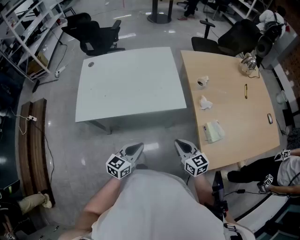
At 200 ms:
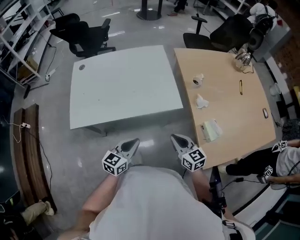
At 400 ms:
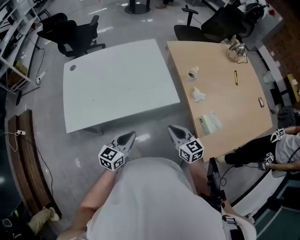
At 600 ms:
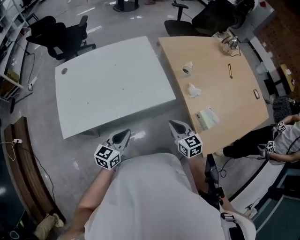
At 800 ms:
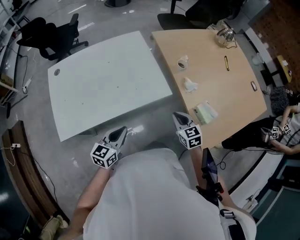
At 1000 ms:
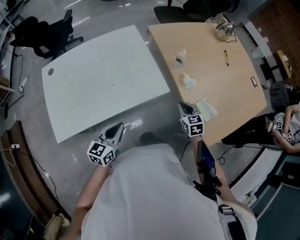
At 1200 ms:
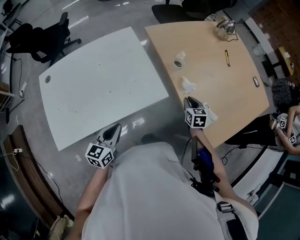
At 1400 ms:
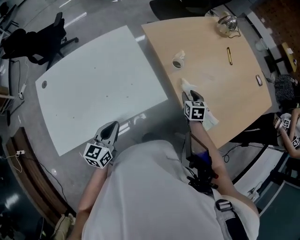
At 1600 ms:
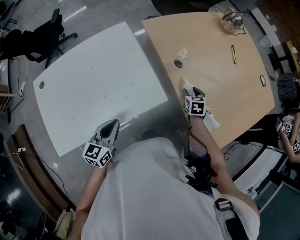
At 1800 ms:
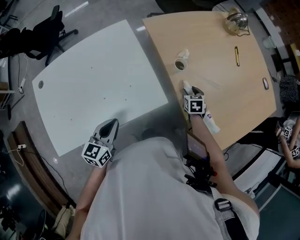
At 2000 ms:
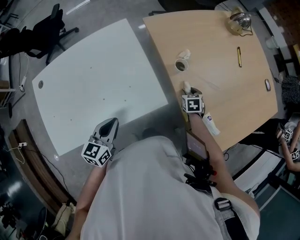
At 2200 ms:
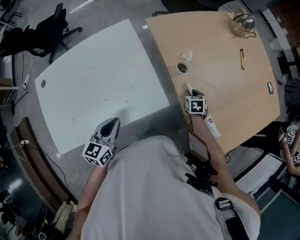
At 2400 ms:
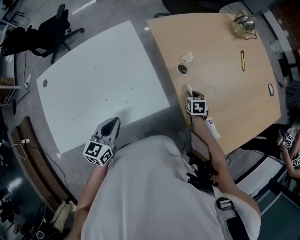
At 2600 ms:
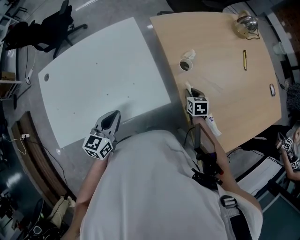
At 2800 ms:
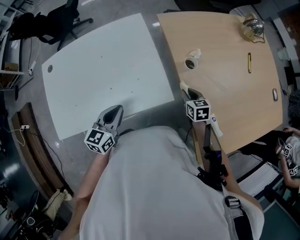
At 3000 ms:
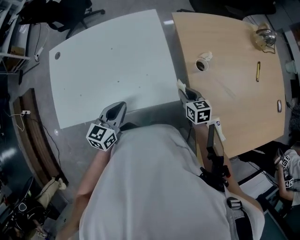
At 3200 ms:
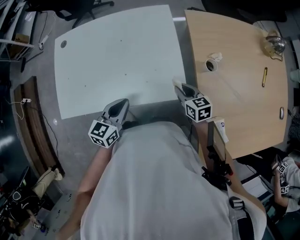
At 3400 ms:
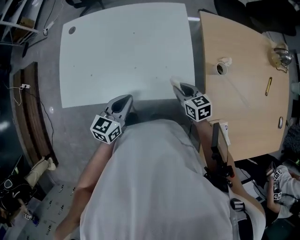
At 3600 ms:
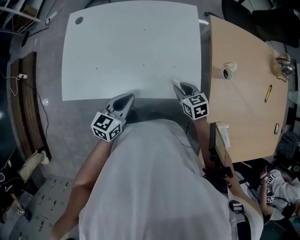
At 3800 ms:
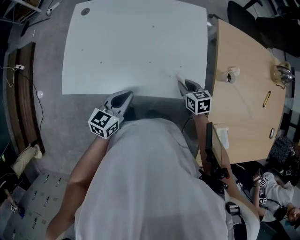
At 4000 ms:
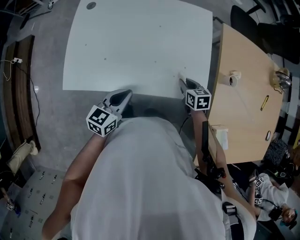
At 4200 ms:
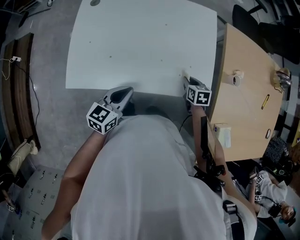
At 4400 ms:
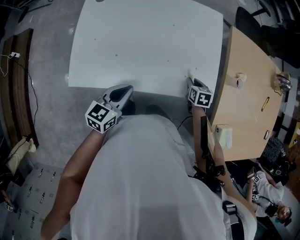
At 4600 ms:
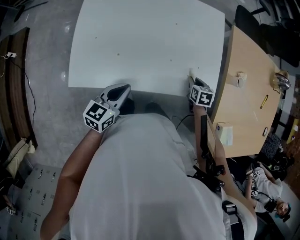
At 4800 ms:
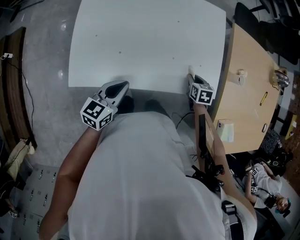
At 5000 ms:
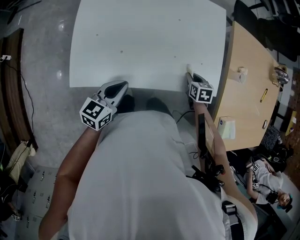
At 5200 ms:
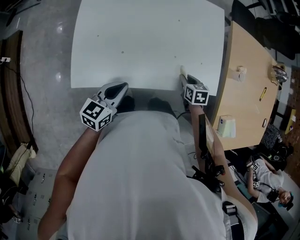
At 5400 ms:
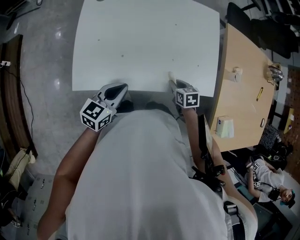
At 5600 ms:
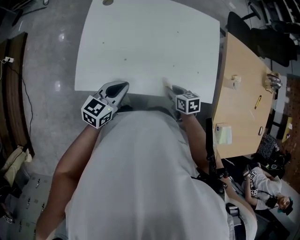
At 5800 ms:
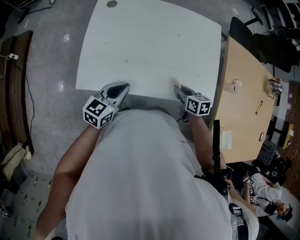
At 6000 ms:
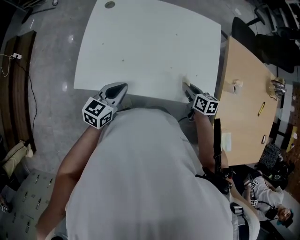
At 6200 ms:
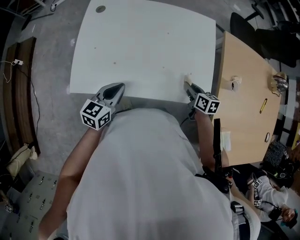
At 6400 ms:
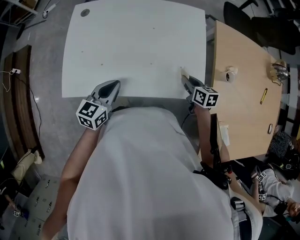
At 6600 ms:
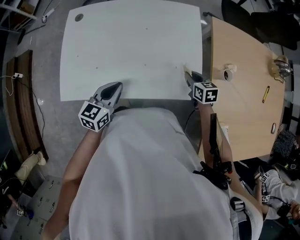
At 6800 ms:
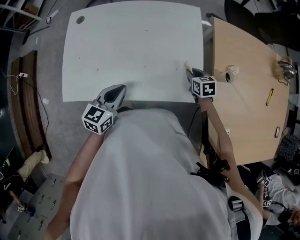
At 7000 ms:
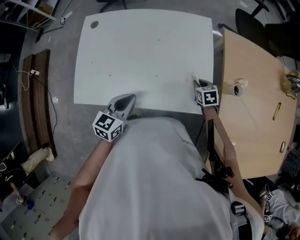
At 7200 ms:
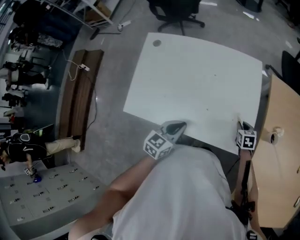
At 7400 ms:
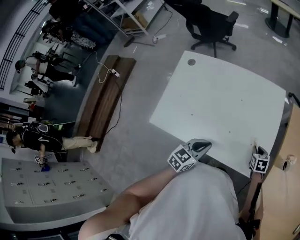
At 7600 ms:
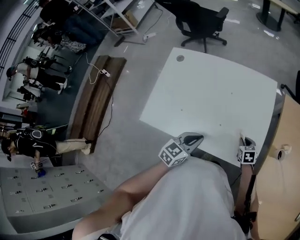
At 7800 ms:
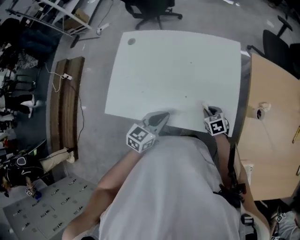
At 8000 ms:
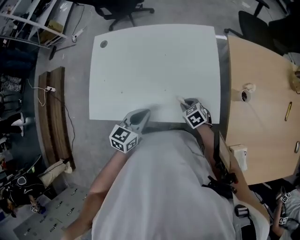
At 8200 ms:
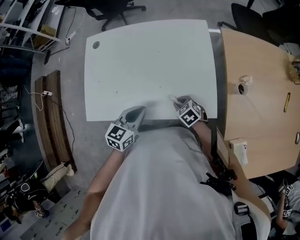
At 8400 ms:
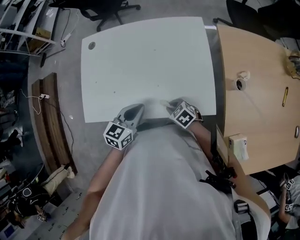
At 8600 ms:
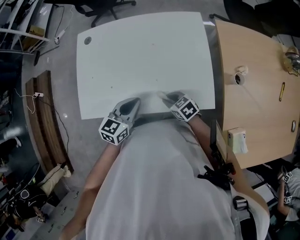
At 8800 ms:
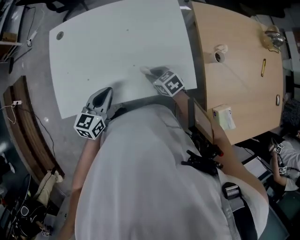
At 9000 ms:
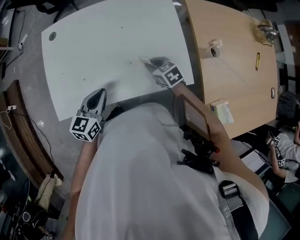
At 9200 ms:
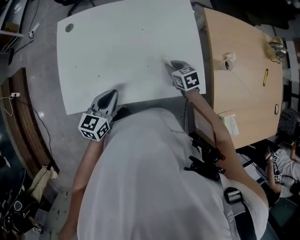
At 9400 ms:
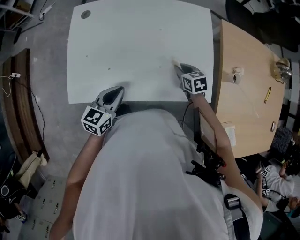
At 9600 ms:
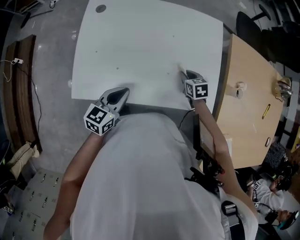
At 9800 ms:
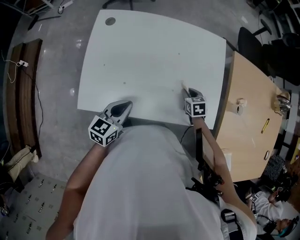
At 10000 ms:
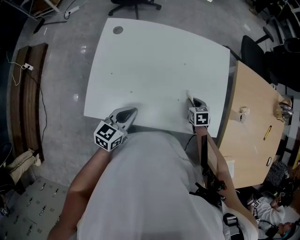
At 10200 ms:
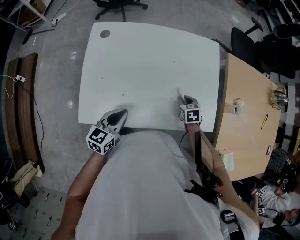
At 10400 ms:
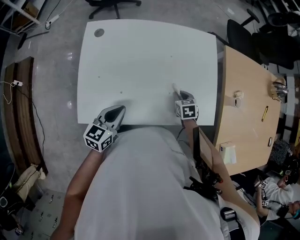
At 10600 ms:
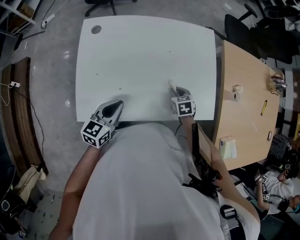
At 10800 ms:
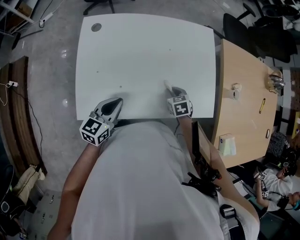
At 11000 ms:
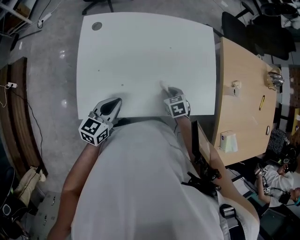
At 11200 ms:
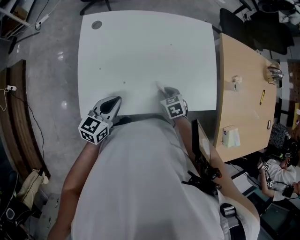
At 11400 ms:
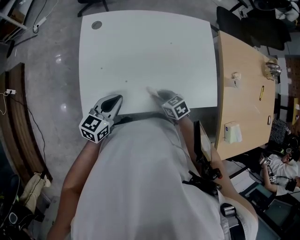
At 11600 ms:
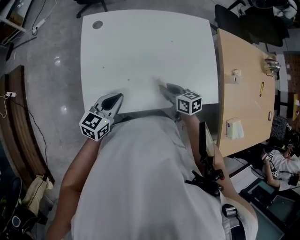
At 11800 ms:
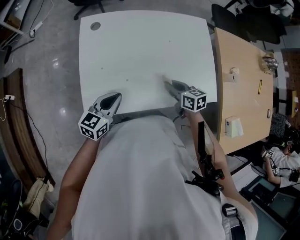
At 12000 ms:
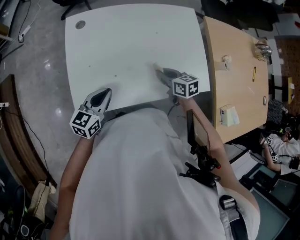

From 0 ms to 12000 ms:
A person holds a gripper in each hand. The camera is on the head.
From 0 ms to 1600 ms: The right gripper ends up about 35 cm from where it was, changes its angle by roughly 50 degrees, and opens up, while the left gripper shifts by approximately 25 cm.
From 1600 ms to 3000 ms: The right gripper goes downward and returns, about 5 cm each way, swivels about 30 degrees, and closes.
From 3000 ms to 4400 ms: The left gripper heads to the left, covering about 20 cm, while the right gripper moves to the left and downward, roughly 15 cm.
From 4400 ms to 6000 ms: The left gripper travels to the left by roughly 5 cm. Meanwhile the right gripper heads to the left and upward, covering some 10 cm, and swivels some 20 degrees.
From 6000 ms to 7600 ms: The right gripper shifts approximately 10 cm downward, to the right and forward, and turns by roughly 30 degrees, while the left gripper shifts approximately 15 cm to the right.
From 7600 ms to 9000 ms: The right gripper is displaced to the left and upward by roughly 10 cm; the left gripper travels to the left by about 5 cm.
From 9000 ms to 10400 ms: The right gripper ends up roughly 5 cm from where it was, and rotates some 20 degrees; the left gripper goes some 10 cm to the left.
From 10400 ms to 12000 ms: The left gripper is displaced to the left by some 5 cm, while the right gripper shifts approximately 10 cm to the left and upward, and changes its angle by roughly 30 degrees.

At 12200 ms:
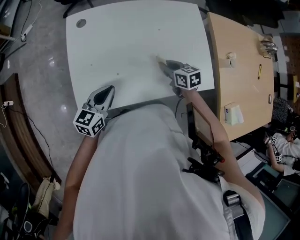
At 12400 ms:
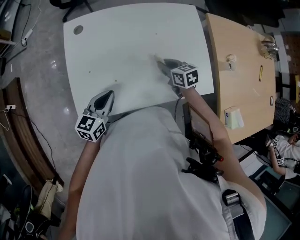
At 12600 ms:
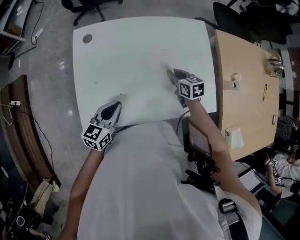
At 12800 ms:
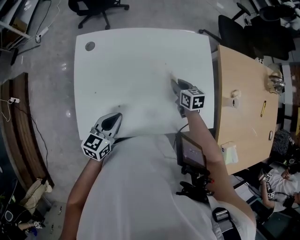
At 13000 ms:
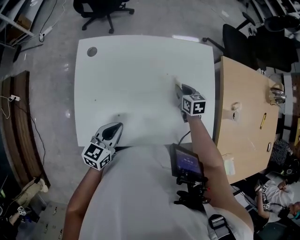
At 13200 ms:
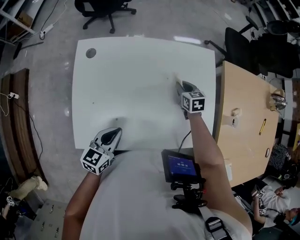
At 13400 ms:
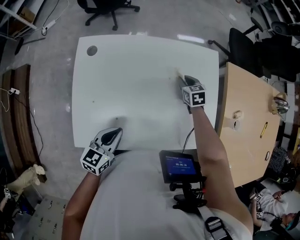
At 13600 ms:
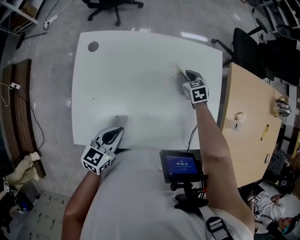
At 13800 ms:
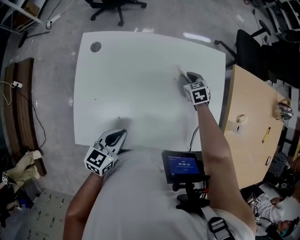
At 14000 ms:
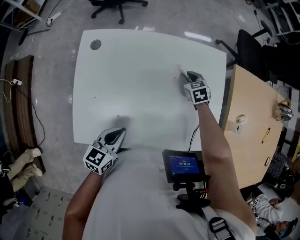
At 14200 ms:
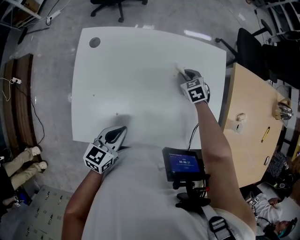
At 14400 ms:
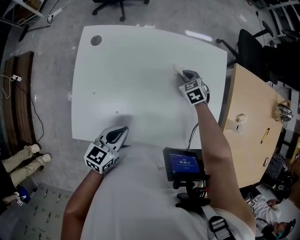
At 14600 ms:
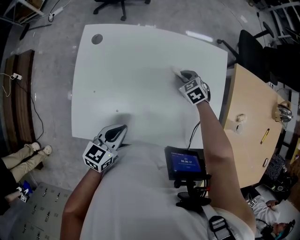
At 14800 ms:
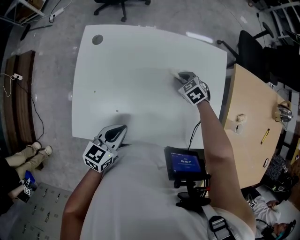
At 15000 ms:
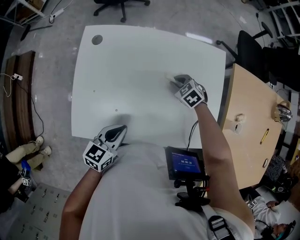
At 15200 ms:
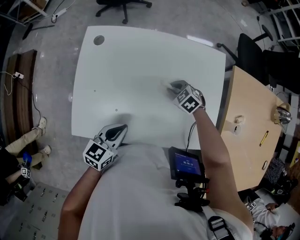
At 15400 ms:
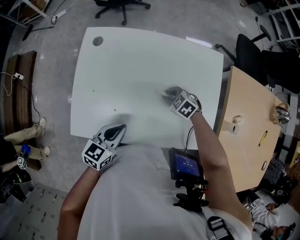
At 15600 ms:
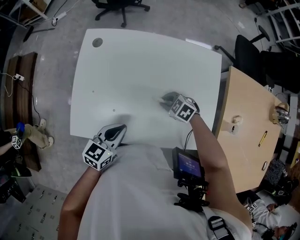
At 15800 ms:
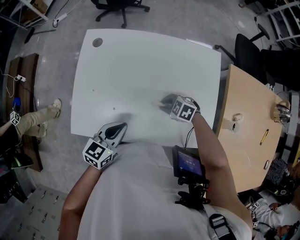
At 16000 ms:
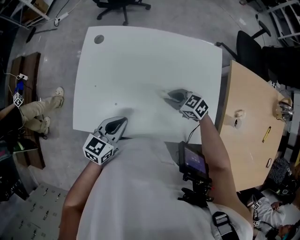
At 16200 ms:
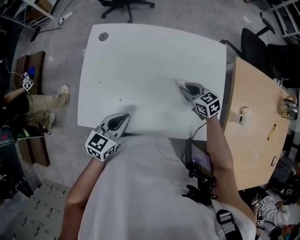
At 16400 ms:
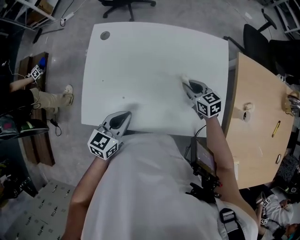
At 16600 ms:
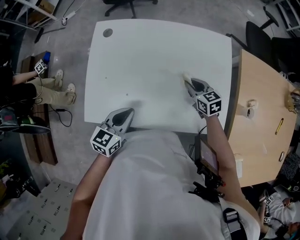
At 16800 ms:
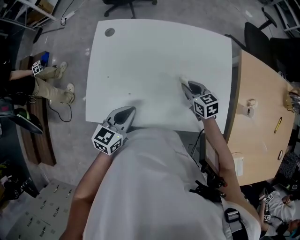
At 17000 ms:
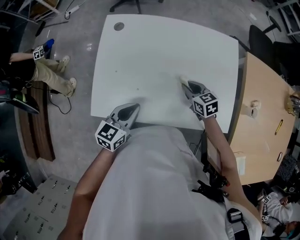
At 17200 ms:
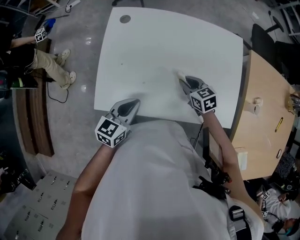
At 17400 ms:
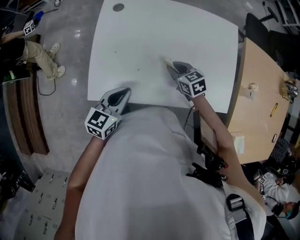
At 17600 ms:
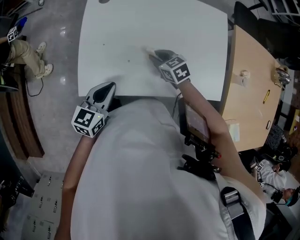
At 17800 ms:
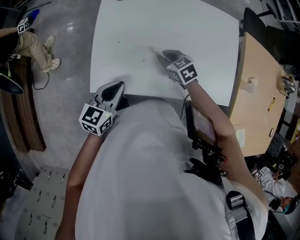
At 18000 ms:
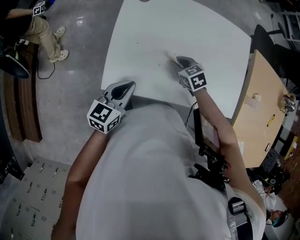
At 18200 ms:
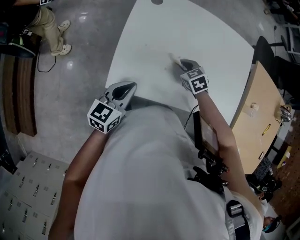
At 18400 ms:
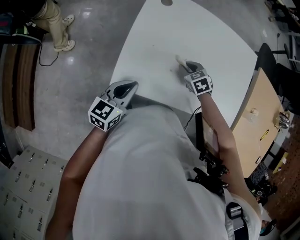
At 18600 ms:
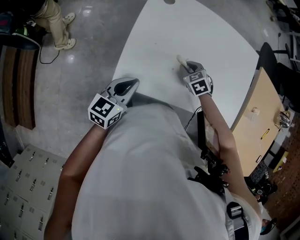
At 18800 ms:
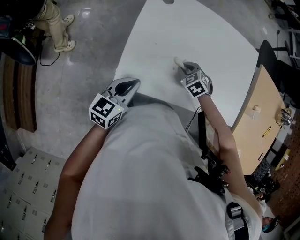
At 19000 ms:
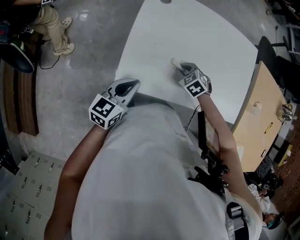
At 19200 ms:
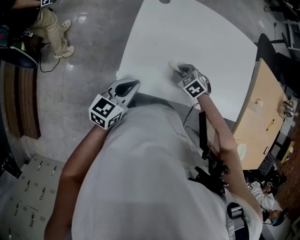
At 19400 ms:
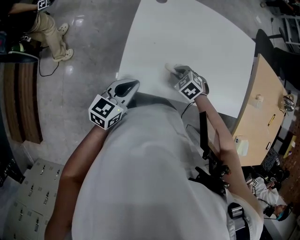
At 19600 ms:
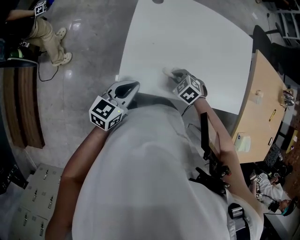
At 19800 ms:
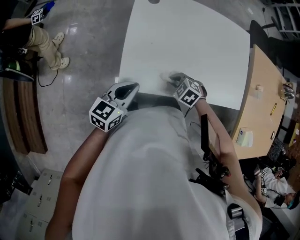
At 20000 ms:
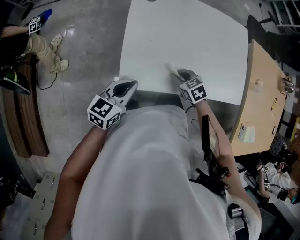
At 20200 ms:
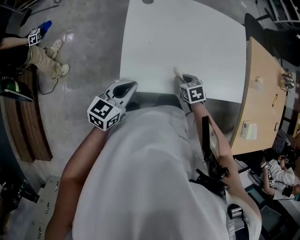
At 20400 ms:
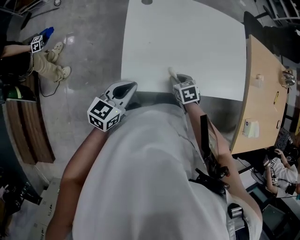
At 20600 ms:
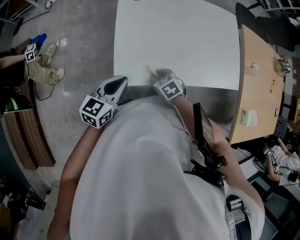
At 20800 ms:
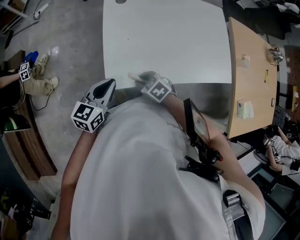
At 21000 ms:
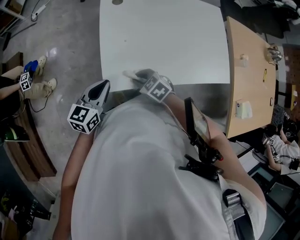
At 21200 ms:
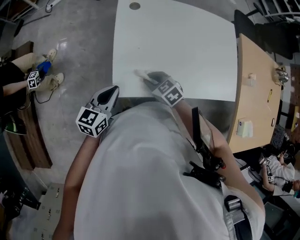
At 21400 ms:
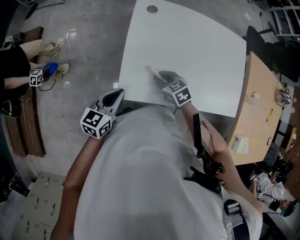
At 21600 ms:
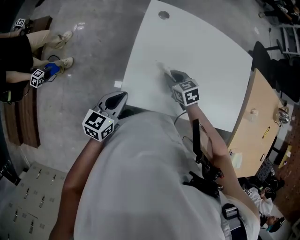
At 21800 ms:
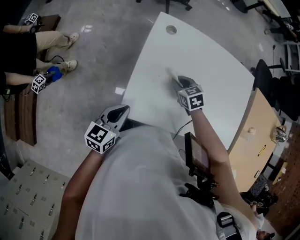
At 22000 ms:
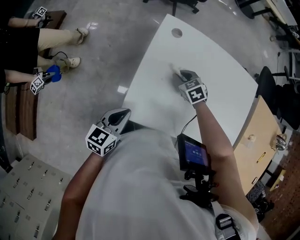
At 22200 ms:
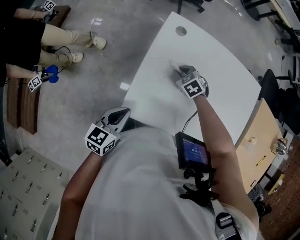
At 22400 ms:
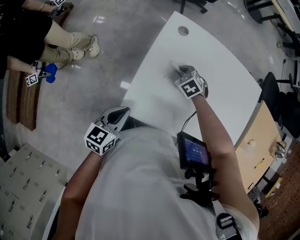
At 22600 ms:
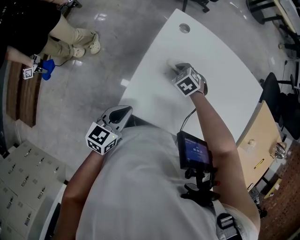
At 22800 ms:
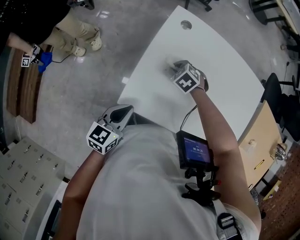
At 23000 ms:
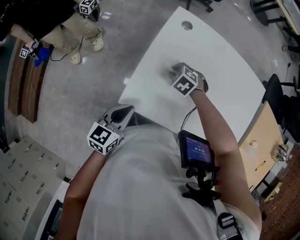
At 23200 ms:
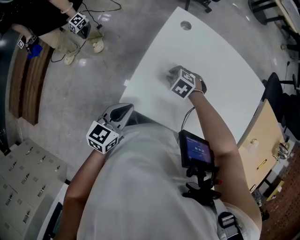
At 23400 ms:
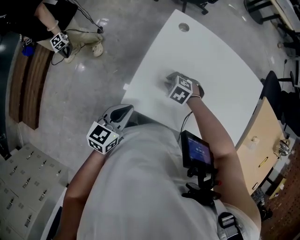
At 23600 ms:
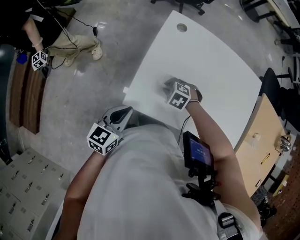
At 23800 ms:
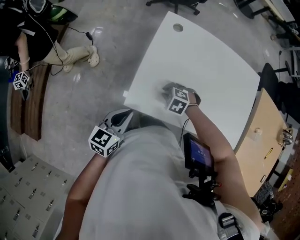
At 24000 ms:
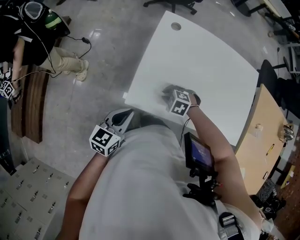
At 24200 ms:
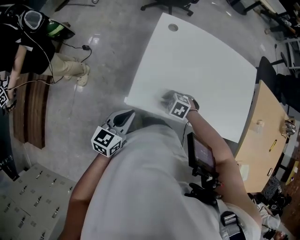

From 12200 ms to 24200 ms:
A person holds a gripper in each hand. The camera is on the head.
From 12200 ms to 13800 ms: The left gripper shifts approximately 5 cm to the right. Meanwhile the right gripper moves forward, some 25 cm, and rotates approximately 30 degrees.
From 13800 ms to 15200 ms: The right gripper moves backward and to the left, about 10 cm, and rotates approximately 30 degrees.
From 15200 ms to 16600 ms: The right gripper moves some 10 cm, and changes its angle by about 40 degrees.
From 16600 ms to 18200 ms: Both grippers travel together to the left, roughly 20 cm. The right gripper changes its angle by some 30 degrees.
From 18200 ms to 19800 ms: The left gripper shifts by approximately 5 cm. Meanwhile the right gripper goes roughly 15 cm backward and to the left, and swivels approximately 20 degrees.
From 19800 ms to 21200 ms: The right gripper heads to the left, covering about 5 cm, and turns by approximately 30 degrees.
From 21200 ms to 22600 ms: The right gripper goes approximately 20 cm forward, and turns by roughly 30 degrees.
From 22600 ms to 24200 ms: The left gripper changes place by about 5 cm; the right gripper shifts some 20 cm backward and to the left.
